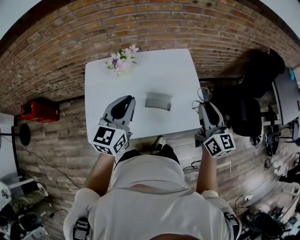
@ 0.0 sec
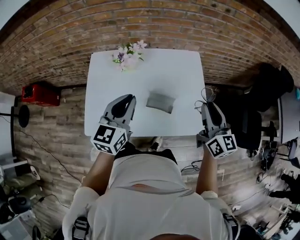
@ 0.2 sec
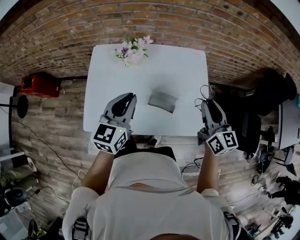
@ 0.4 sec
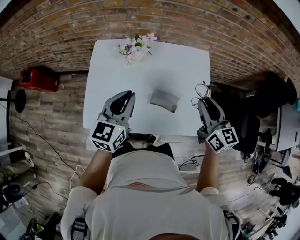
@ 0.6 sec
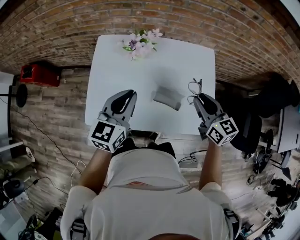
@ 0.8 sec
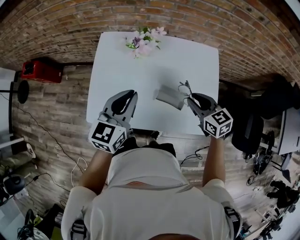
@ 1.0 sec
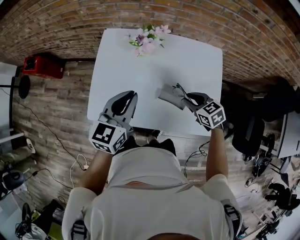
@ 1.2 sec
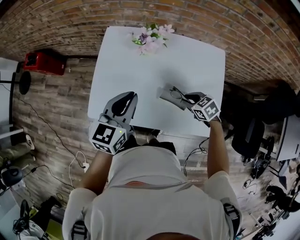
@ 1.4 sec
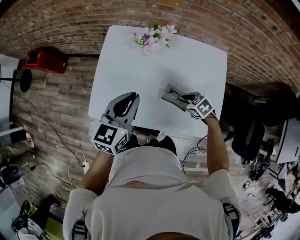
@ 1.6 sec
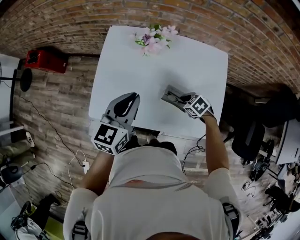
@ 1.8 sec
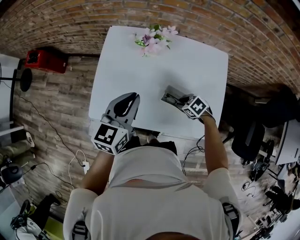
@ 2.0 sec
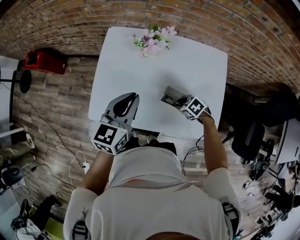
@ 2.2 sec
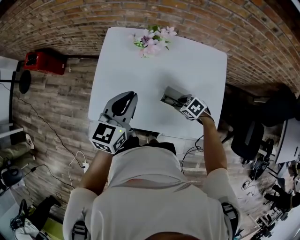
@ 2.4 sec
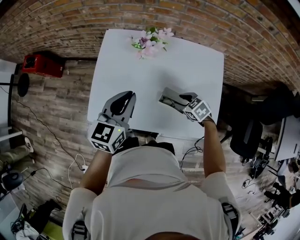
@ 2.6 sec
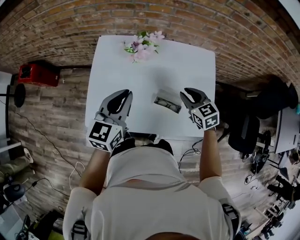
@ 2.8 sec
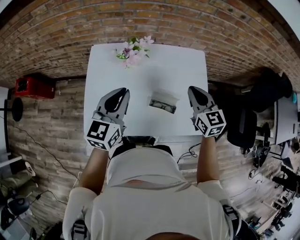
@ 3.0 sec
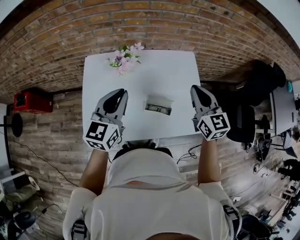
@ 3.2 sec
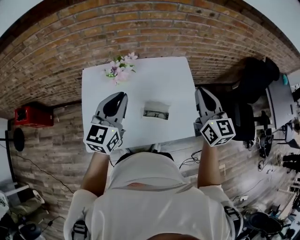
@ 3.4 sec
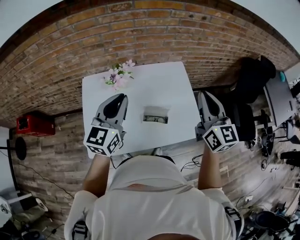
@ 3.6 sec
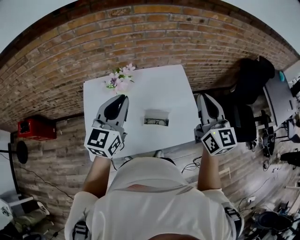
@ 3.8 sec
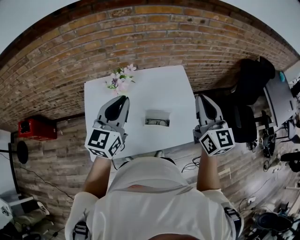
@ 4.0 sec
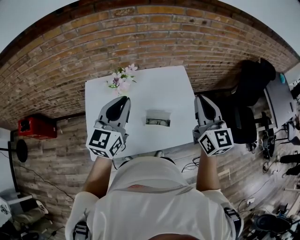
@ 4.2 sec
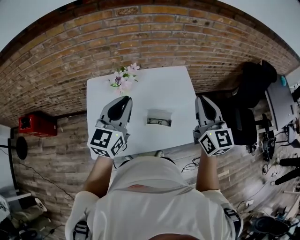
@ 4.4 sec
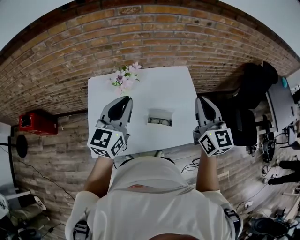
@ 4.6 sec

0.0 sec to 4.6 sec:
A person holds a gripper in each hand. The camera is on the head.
0.0 sec to 1.6 sec: The right gripper goes about 30 cm downward, and tips its fingers downward by about 60 degrees; the left gripper travels downward by some 5 cm.
1.6 sec to 3.0 sec: The right gripper shifts some 25 cm upward, tilts its fingers roughly 40 degrees upward, and closes up, while the left gripper moves about 5 cm.
3.0 sec to 4.6 sec: The right gripper goes about 15 cm upward and backward, and turns by approximately 30 degrees. Meanwhile the left gripper moves upward, roughly 10 cm.

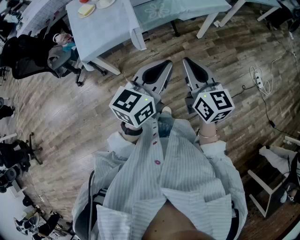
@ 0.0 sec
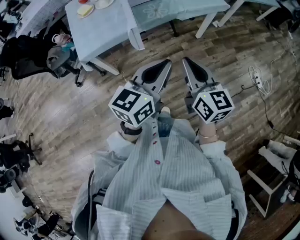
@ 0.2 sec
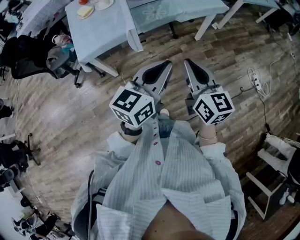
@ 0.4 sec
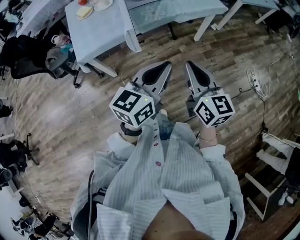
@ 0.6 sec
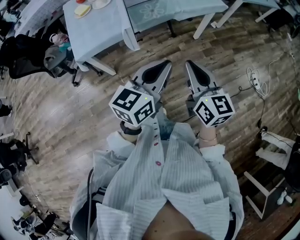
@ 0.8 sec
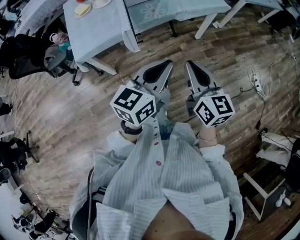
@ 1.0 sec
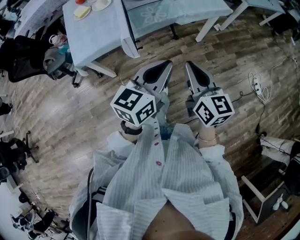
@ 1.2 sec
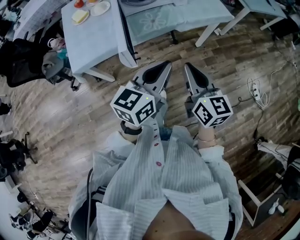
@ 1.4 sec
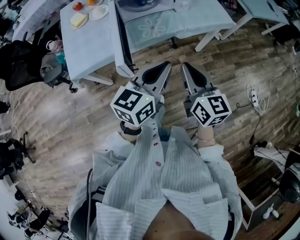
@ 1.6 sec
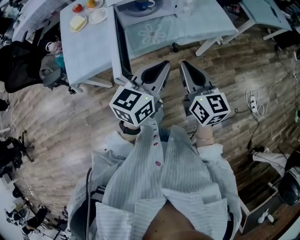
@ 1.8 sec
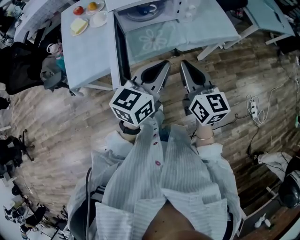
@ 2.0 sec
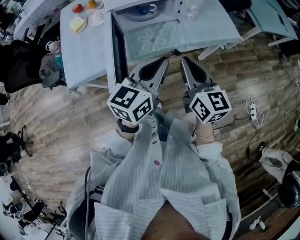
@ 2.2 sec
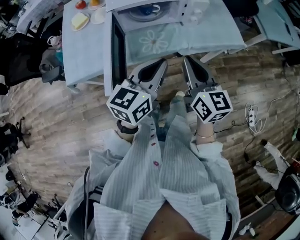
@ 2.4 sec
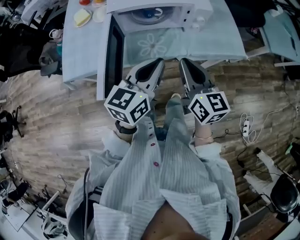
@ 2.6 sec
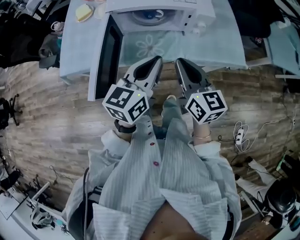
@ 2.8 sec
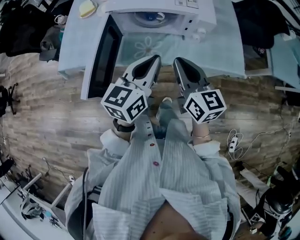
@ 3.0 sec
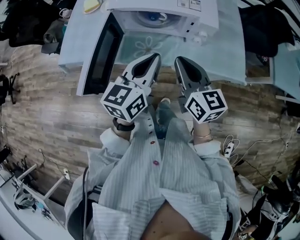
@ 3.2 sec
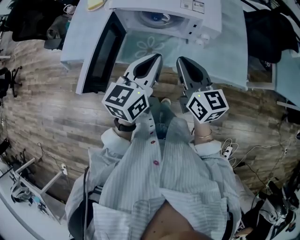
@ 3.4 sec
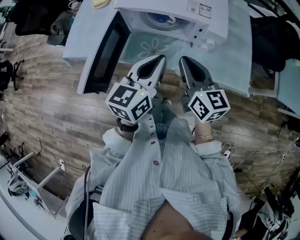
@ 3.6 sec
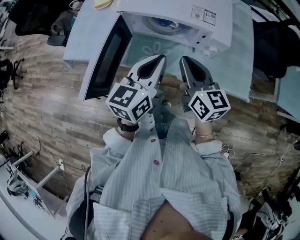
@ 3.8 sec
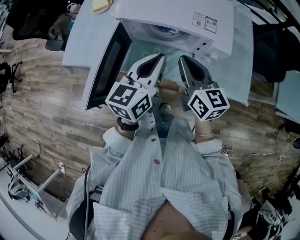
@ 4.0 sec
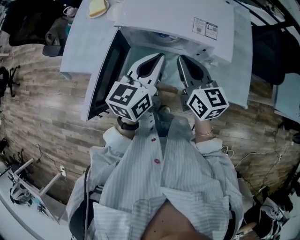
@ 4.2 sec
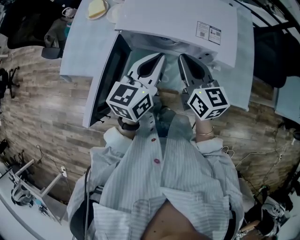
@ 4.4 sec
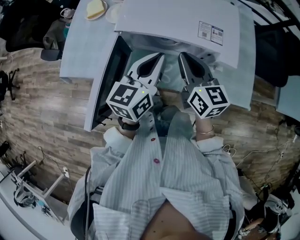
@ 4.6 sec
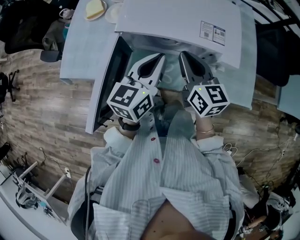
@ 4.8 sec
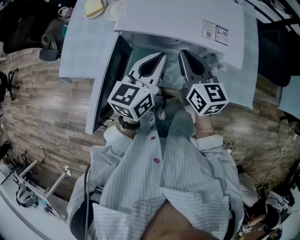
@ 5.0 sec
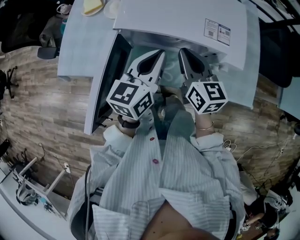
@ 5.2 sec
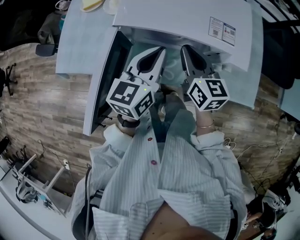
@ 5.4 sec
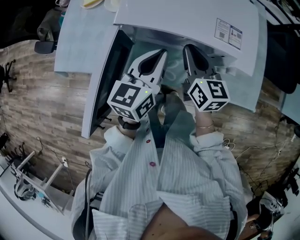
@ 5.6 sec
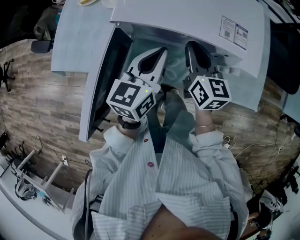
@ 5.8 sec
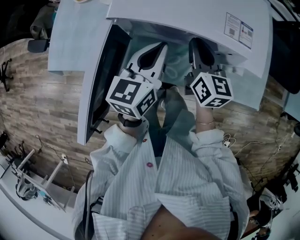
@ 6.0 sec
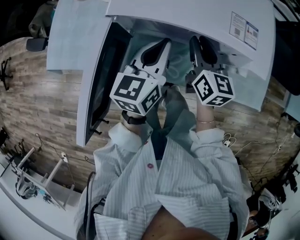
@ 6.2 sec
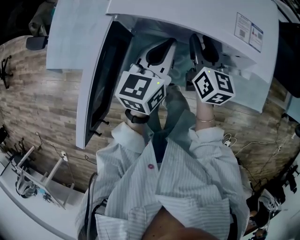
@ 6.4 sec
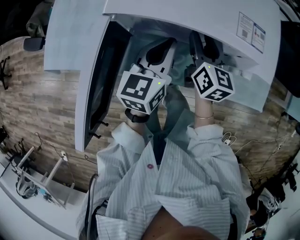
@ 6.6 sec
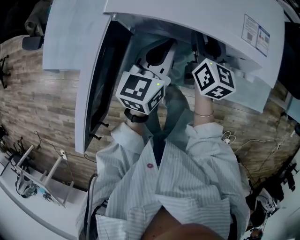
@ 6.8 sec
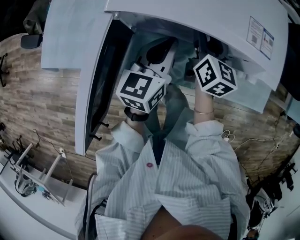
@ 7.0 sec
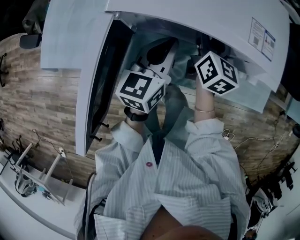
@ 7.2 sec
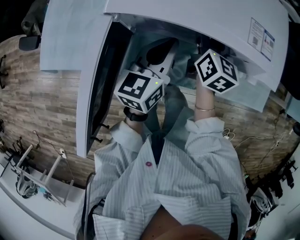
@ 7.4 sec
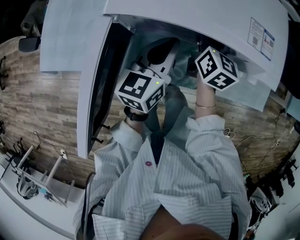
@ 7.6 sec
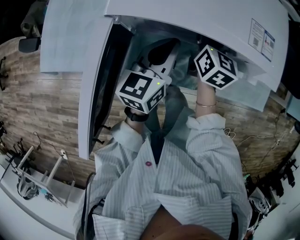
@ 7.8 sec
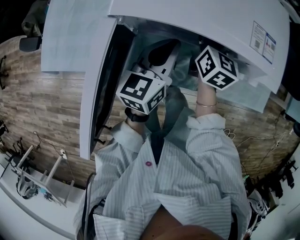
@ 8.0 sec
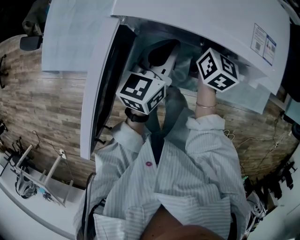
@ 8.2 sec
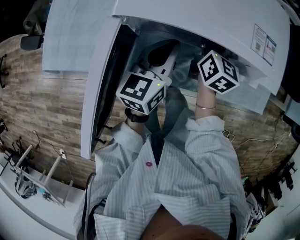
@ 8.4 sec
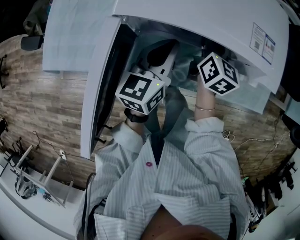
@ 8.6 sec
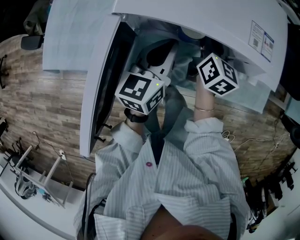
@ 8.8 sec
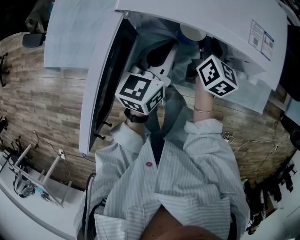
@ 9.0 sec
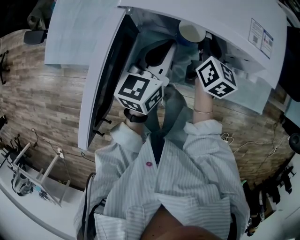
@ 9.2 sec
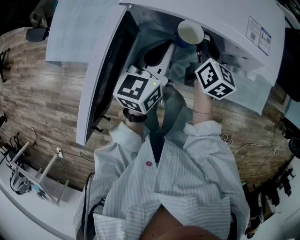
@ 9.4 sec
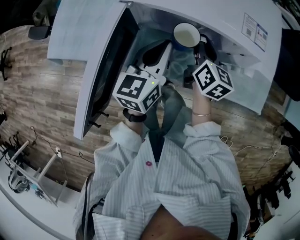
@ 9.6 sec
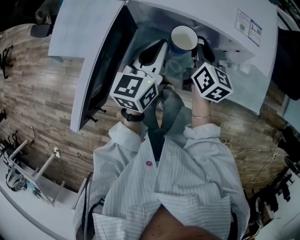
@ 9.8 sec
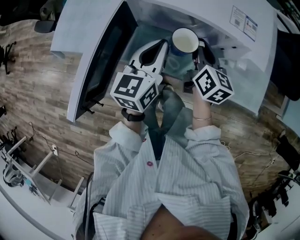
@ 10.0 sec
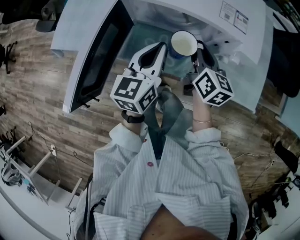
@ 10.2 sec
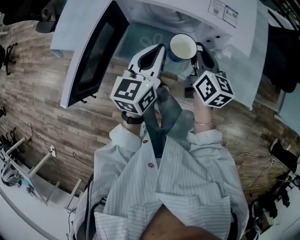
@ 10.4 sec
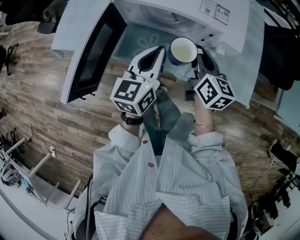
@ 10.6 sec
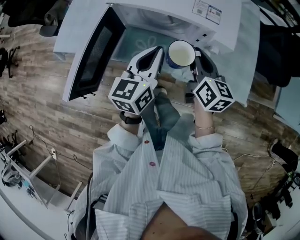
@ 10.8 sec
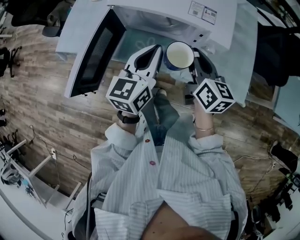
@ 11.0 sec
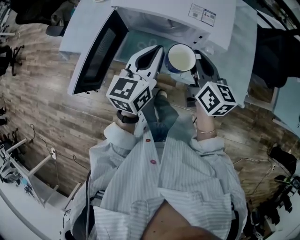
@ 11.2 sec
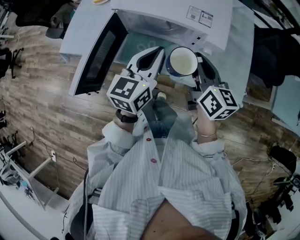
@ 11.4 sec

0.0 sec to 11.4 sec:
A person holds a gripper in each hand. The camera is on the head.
0.0 sec to 1.4 sec: Both grippers move forward, roughly 10 cm.
1.4 sec to 2.8 sec: Both grippers travel together forward, approximately 30 cm. The left gripper swivels some 20 degrees. Meanwhile the right gripper swivels some 20 degrees.
2.8 sec to 4.2 sec: Both grippers travel together forward, roughly 15 cm.
4.2 sec to 5.6 sec: The left gripper is displaced downward by roughly 5 cm; the right gripper goes about 10 cm downward and forward.
5.6 sec to 7.2 sec: The left gripper heads downward, covering approximately 10 cm. Meanwhile the right gripper travels forward and downward by approximately 10 cm, and opens up.
7.2 sec to 8.6 sec: The right gripper closes its fingers.
8.6 sec to 10.0 sec: Both grippers travel together backward, roughly 10 cm.
10.0 sec to 11.4 sec: The left gripper shifts approximately 15 cm upward, to the right and backward, while the right gripper goes roughly 20 cm upward, backward and to the right.

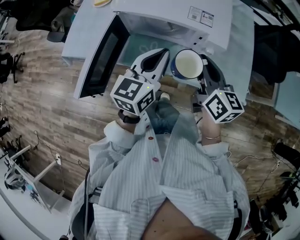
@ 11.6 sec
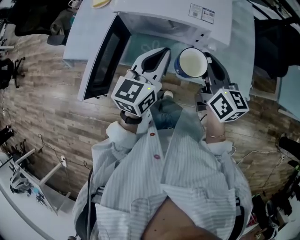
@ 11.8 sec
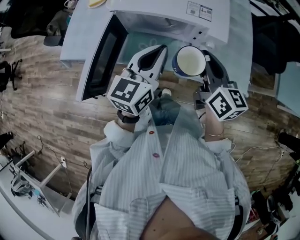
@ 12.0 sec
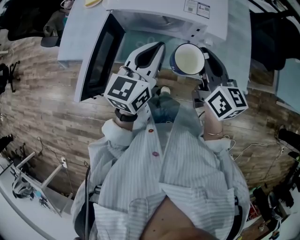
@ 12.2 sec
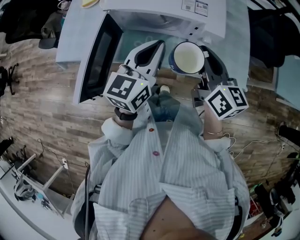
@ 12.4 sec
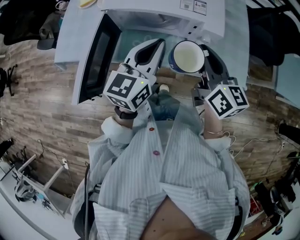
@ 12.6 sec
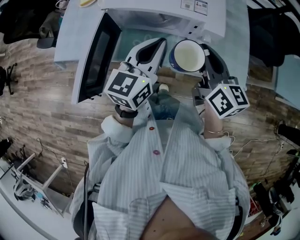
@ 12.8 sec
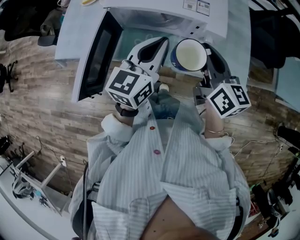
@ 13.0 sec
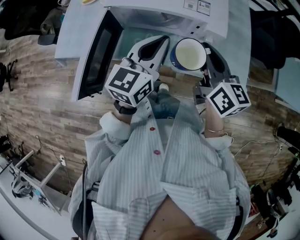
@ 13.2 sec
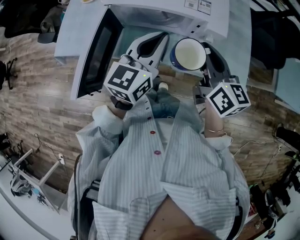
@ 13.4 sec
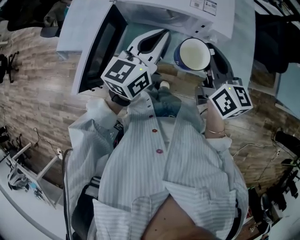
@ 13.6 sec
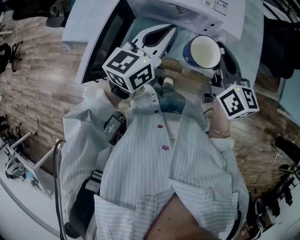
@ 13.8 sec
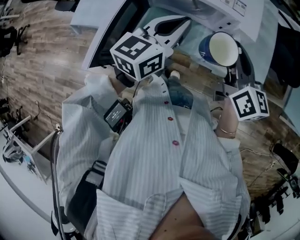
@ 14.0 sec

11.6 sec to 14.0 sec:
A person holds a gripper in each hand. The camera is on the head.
11.6 sec to 14.0 sec: The grippers stay close to where they were, moving slightly.

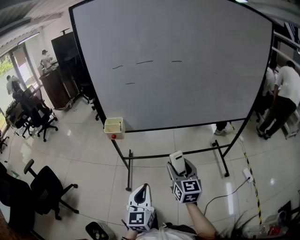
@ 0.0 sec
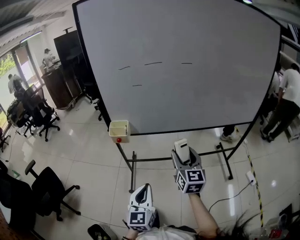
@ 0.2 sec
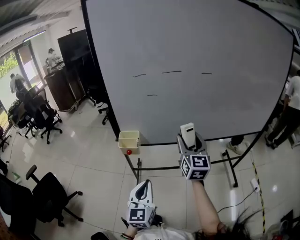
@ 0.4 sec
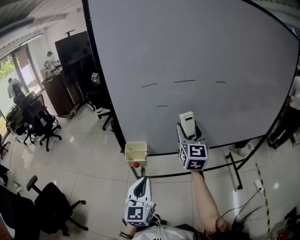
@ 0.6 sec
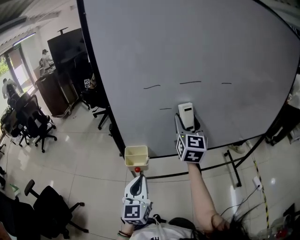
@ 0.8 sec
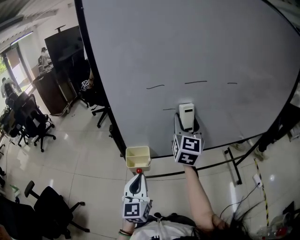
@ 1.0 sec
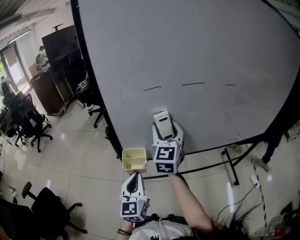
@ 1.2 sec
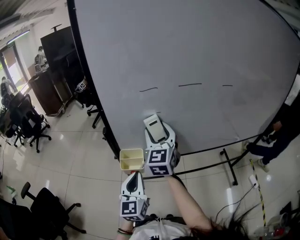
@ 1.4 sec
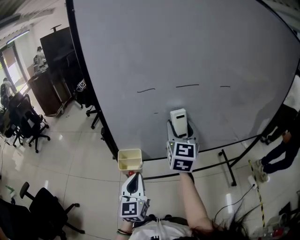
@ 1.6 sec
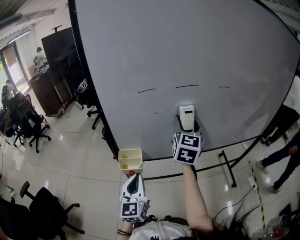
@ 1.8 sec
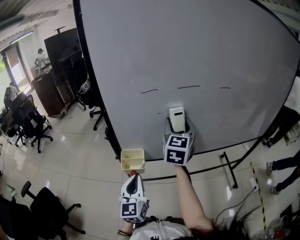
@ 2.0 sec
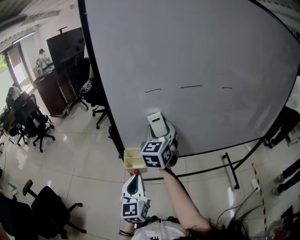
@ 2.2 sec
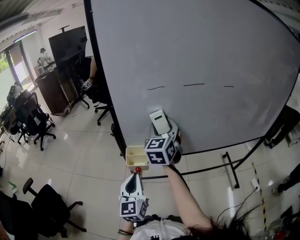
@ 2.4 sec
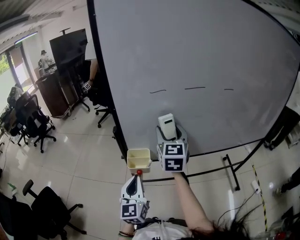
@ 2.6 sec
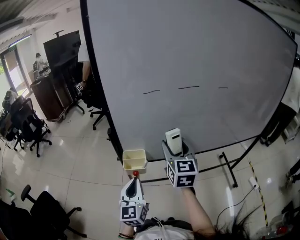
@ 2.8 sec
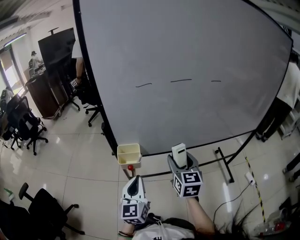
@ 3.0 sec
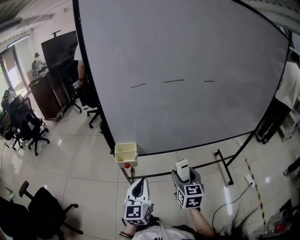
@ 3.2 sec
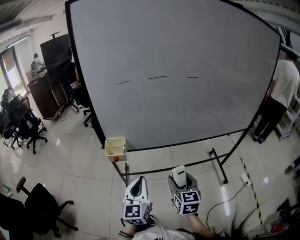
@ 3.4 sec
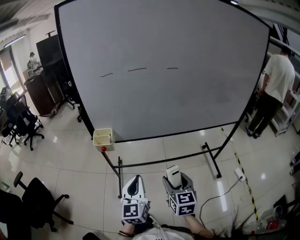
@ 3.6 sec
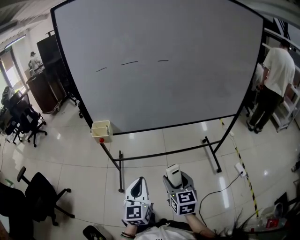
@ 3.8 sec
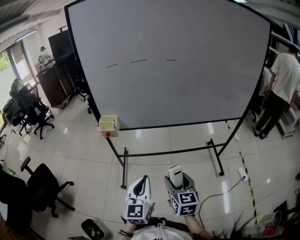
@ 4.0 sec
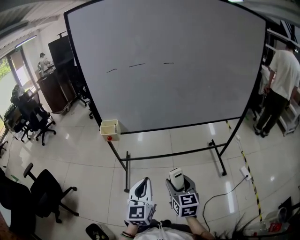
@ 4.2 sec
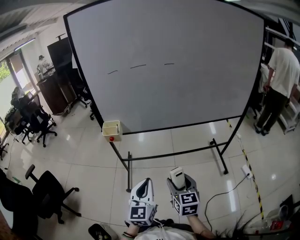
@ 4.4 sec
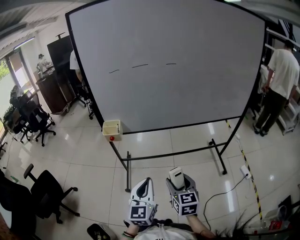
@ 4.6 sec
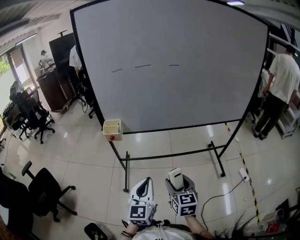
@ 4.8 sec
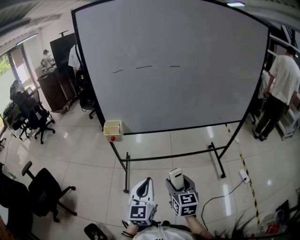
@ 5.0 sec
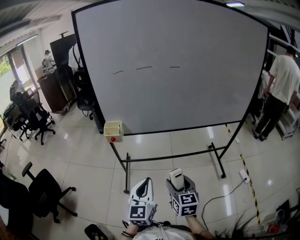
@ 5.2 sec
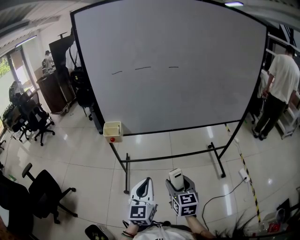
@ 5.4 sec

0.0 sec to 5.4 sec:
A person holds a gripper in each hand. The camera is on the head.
0.0 sec to 1.4 sec: The two grippers go some 40 cm forward and to the left. The right gripper turns by some 20 degrees.
1.4 sec to 2.8 sec: The right gripper swings left and right, about 15 cm each way, with 2 reversals.
2.8 sec to 4.0 sec: The right gripper travels backward, to the right and downward by roughly 40 cm. The left gripper goes some 35 cm to the right and backward.
4.0 sec to 5.4 sec: The grippers make only small movements.
